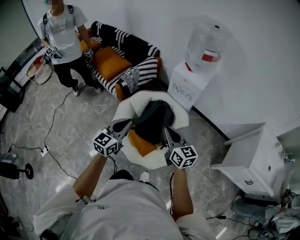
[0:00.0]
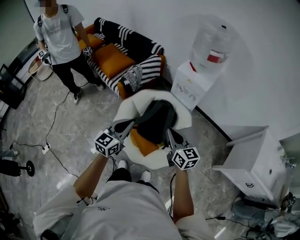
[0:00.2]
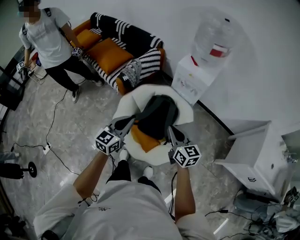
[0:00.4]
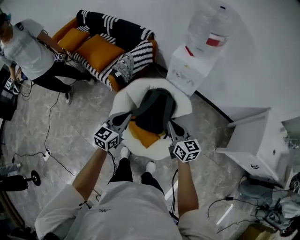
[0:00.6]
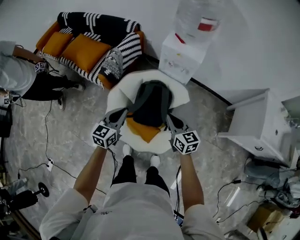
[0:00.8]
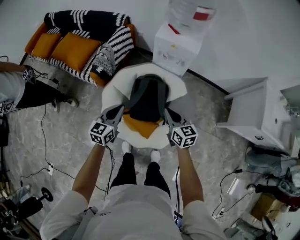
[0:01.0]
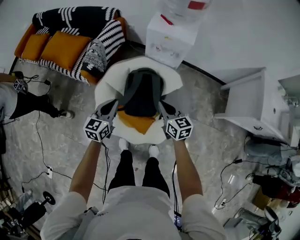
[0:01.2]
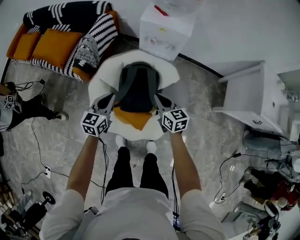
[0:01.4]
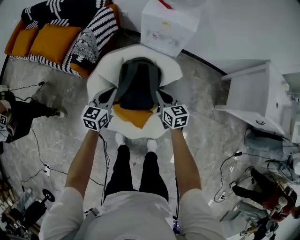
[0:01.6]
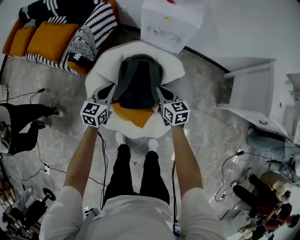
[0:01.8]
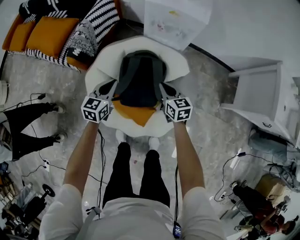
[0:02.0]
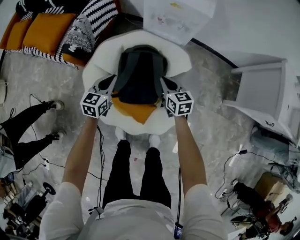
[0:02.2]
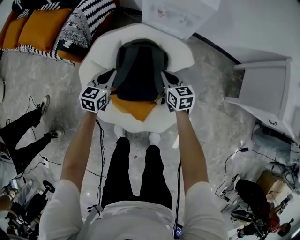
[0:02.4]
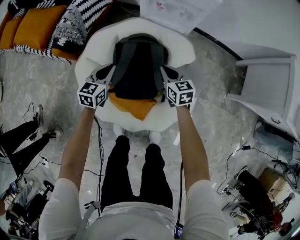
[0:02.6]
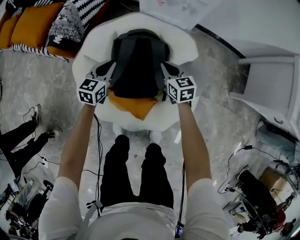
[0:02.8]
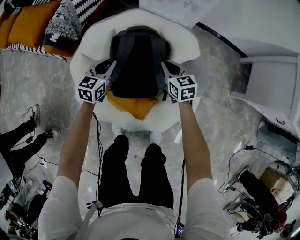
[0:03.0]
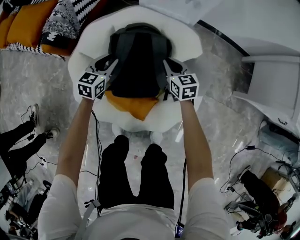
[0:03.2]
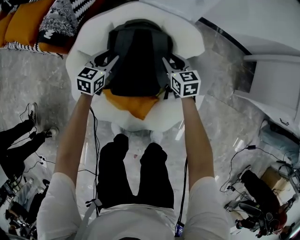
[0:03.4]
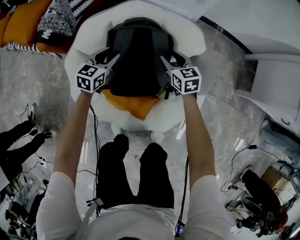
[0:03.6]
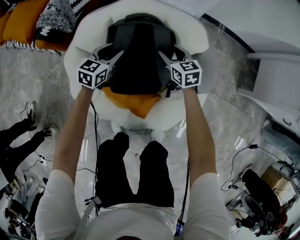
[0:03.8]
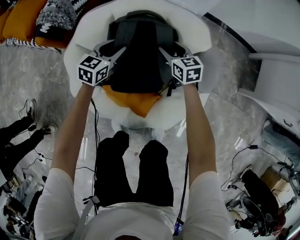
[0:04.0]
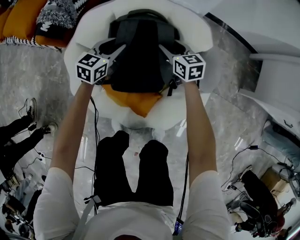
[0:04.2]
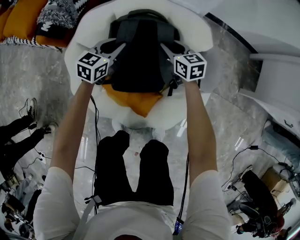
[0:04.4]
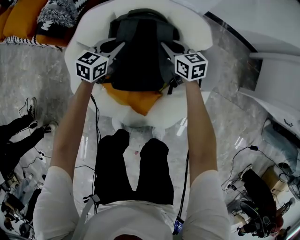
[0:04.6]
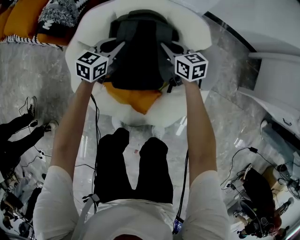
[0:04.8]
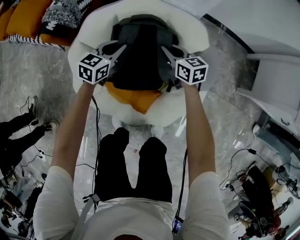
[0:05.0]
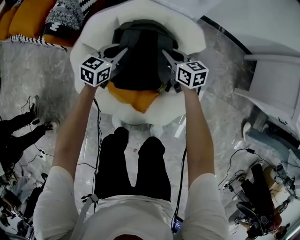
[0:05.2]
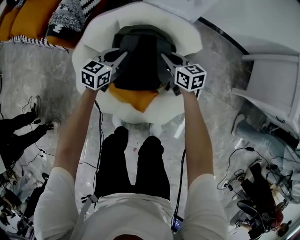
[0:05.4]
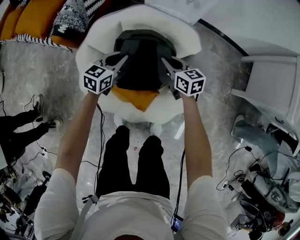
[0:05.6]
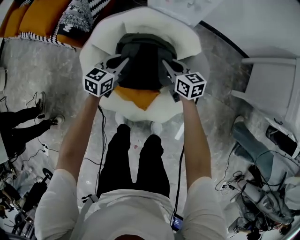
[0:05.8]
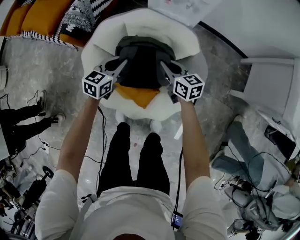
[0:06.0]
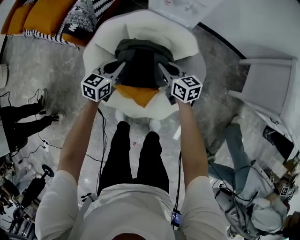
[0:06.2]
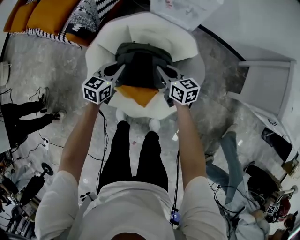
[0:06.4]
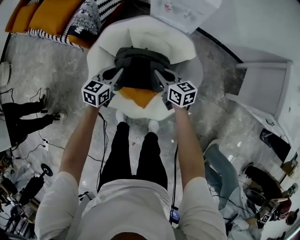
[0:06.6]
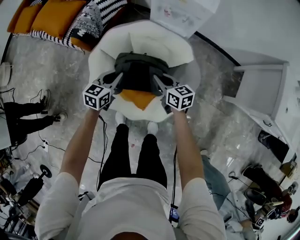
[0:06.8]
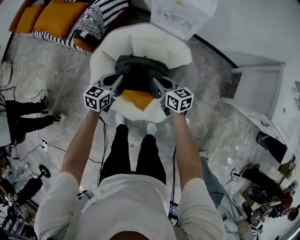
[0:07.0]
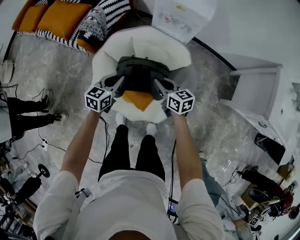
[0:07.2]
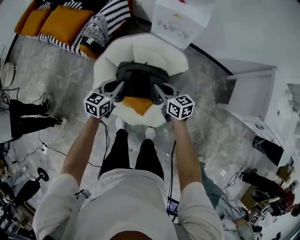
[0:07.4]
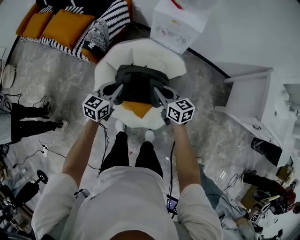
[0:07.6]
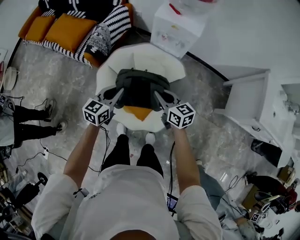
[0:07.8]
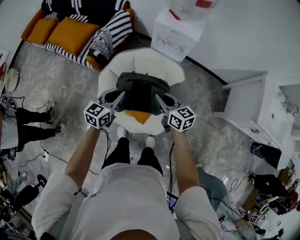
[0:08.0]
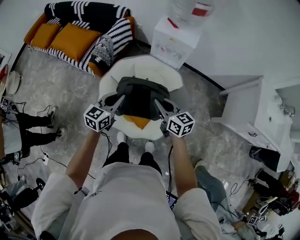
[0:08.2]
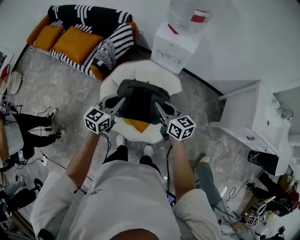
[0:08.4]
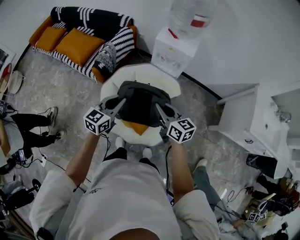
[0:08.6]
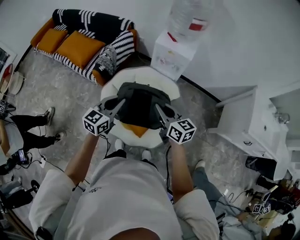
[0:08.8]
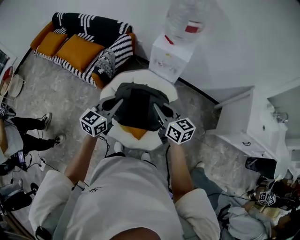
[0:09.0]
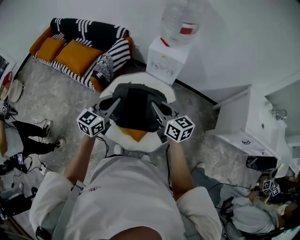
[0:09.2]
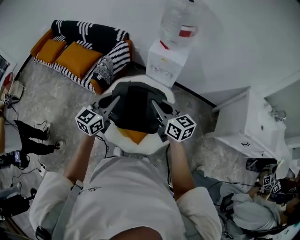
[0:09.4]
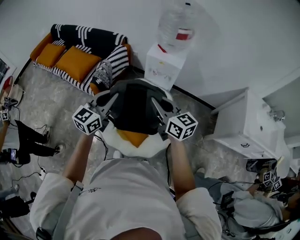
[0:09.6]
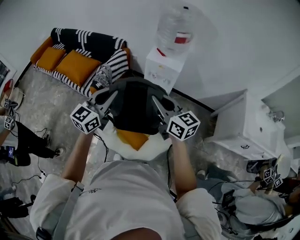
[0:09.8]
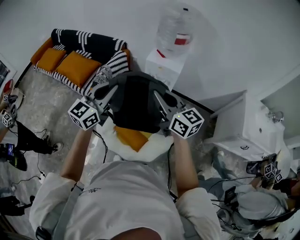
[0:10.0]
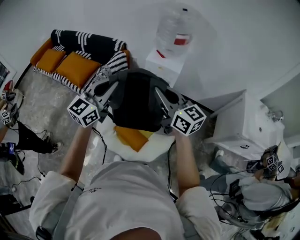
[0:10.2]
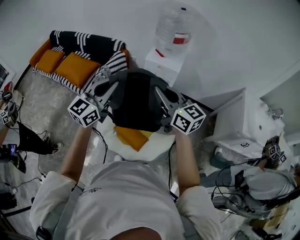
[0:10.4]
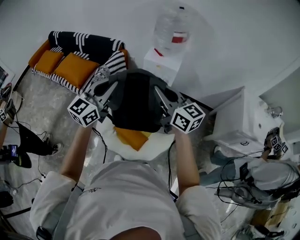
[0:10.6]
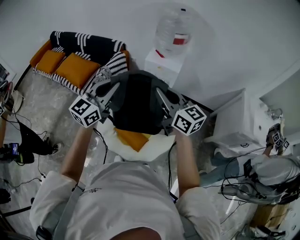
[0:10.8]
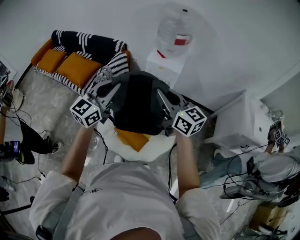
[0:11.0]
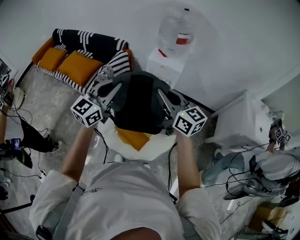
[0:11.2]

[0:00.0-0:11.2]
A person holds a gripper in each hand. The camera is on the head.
0.0 to 1.6 s: Both grippers travel together downward and forward, approximately 30 cm. The right gripper changes its angle by roughly 30 degrees.
1.6 to 3.2 s: The two grippers go some 25 cm downward. The left gripper opens its fingers.
3.2 to 4.8 s: The right gripper opens and closes again.
4.8 to 6.4 s: Both grippers move upward and backward, roughly 20 cm.
6.4 to 8.0 s: Both grippers travel together upward, approximately 20 cm.
8.0 to 9.6 s: The two grippers go approximately 20 cm upward.
9.6 to 11.2 s: The left gripper moves upward, some 5 cm.

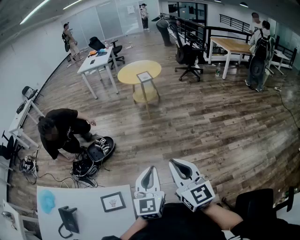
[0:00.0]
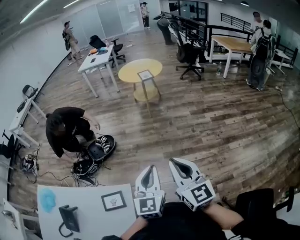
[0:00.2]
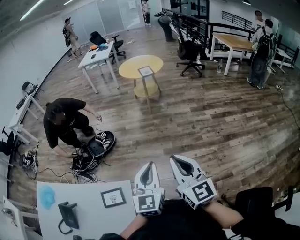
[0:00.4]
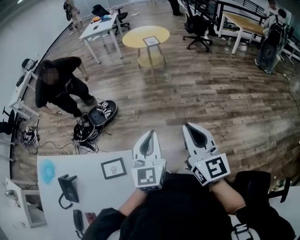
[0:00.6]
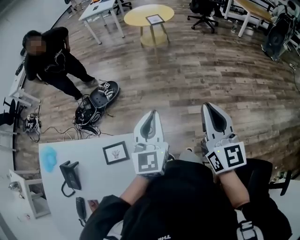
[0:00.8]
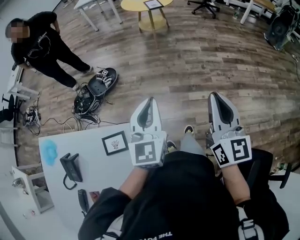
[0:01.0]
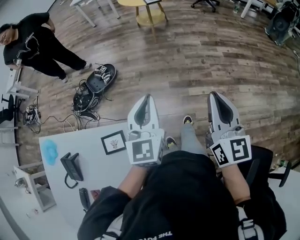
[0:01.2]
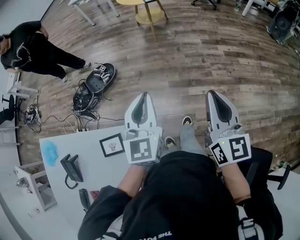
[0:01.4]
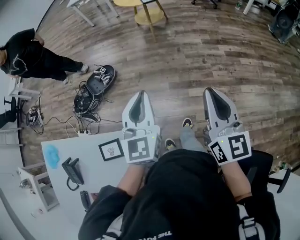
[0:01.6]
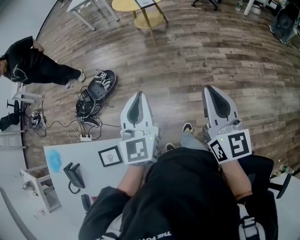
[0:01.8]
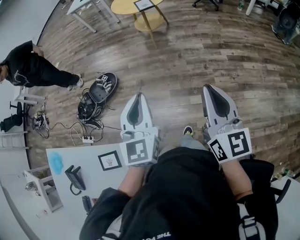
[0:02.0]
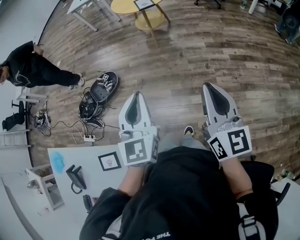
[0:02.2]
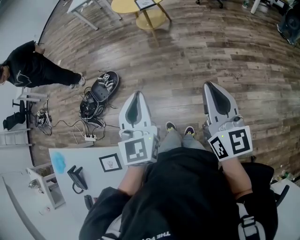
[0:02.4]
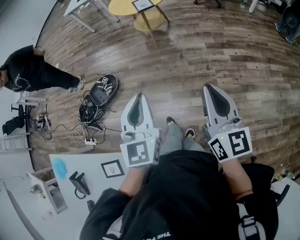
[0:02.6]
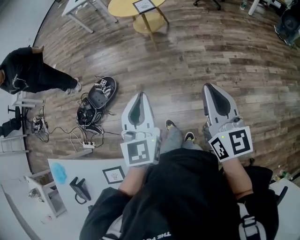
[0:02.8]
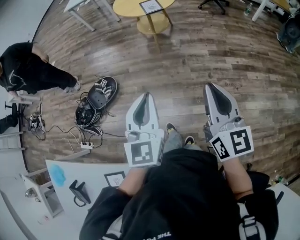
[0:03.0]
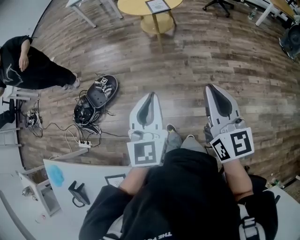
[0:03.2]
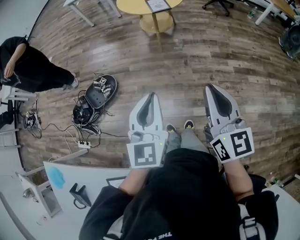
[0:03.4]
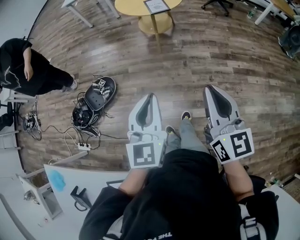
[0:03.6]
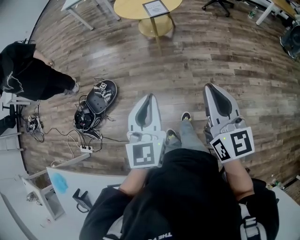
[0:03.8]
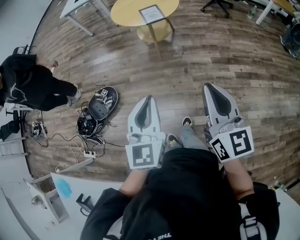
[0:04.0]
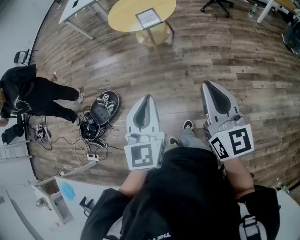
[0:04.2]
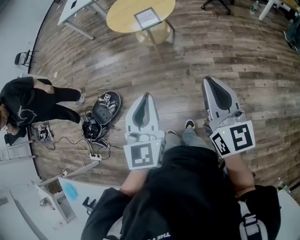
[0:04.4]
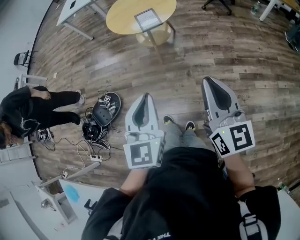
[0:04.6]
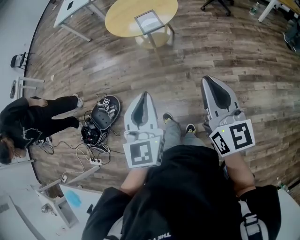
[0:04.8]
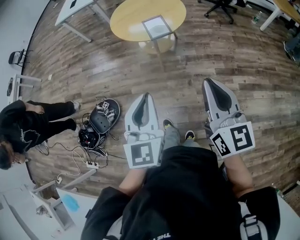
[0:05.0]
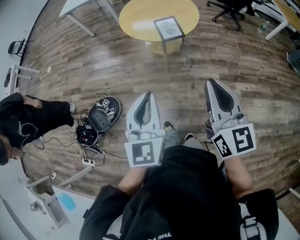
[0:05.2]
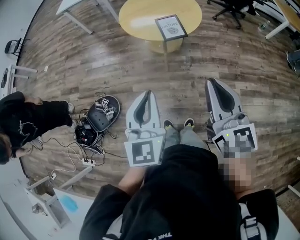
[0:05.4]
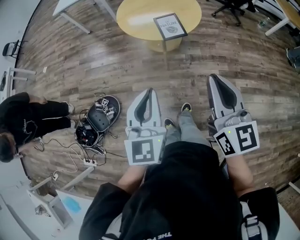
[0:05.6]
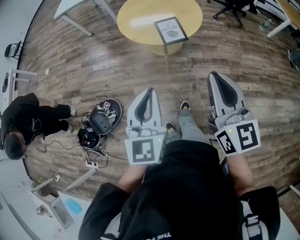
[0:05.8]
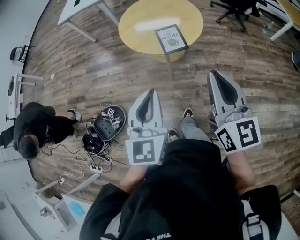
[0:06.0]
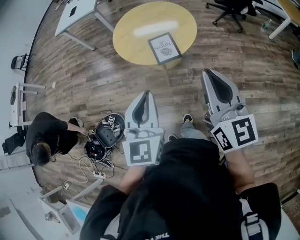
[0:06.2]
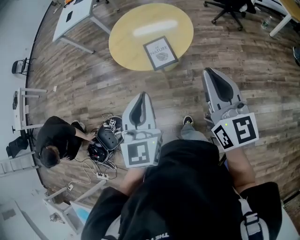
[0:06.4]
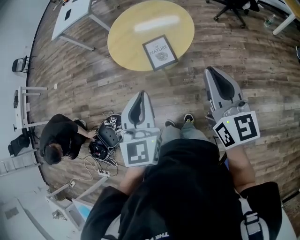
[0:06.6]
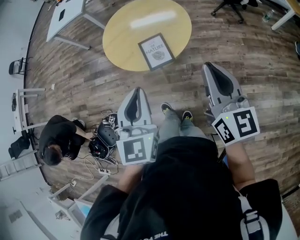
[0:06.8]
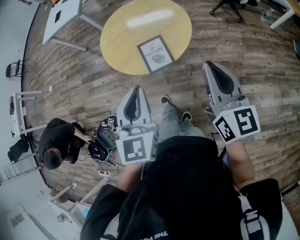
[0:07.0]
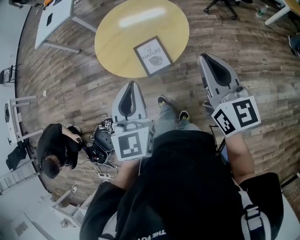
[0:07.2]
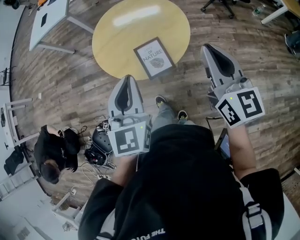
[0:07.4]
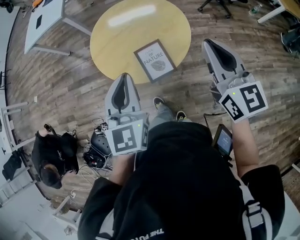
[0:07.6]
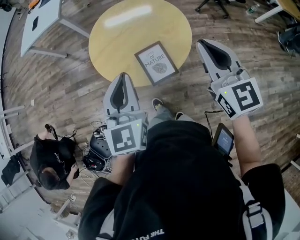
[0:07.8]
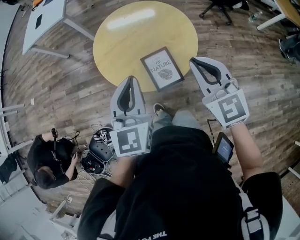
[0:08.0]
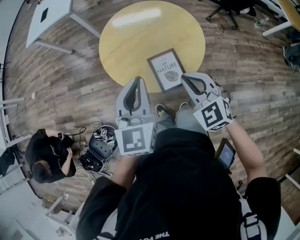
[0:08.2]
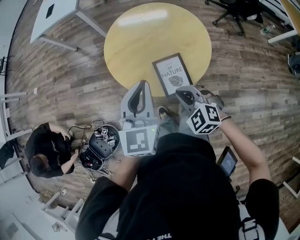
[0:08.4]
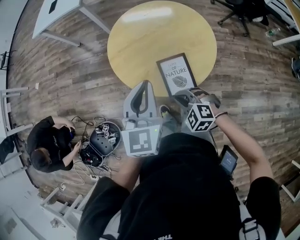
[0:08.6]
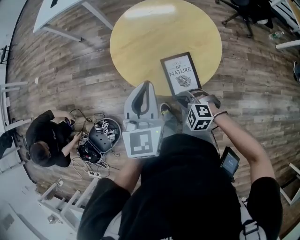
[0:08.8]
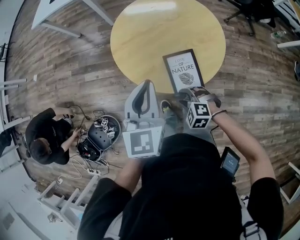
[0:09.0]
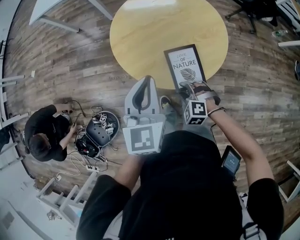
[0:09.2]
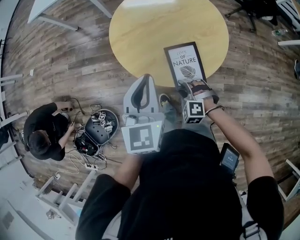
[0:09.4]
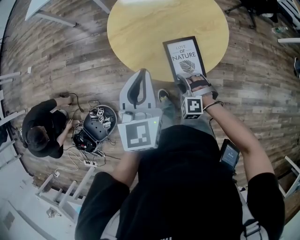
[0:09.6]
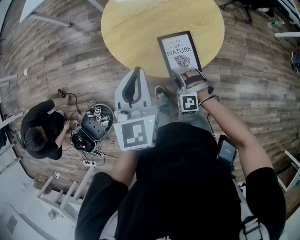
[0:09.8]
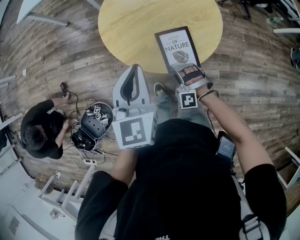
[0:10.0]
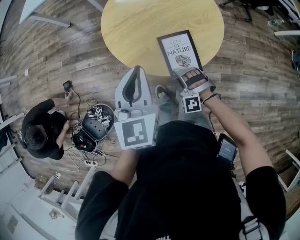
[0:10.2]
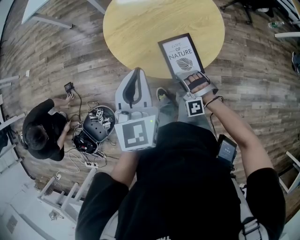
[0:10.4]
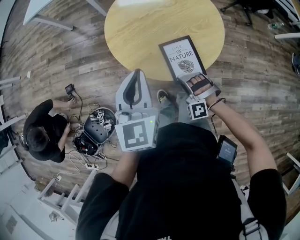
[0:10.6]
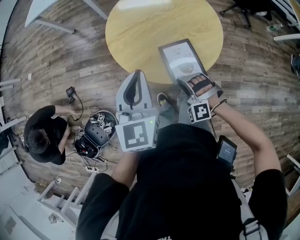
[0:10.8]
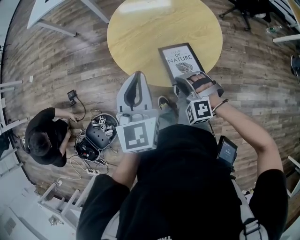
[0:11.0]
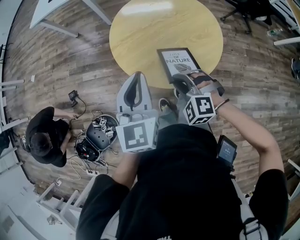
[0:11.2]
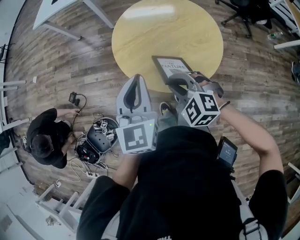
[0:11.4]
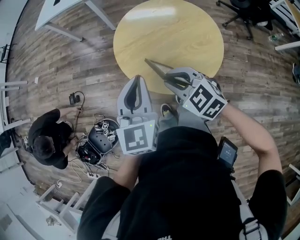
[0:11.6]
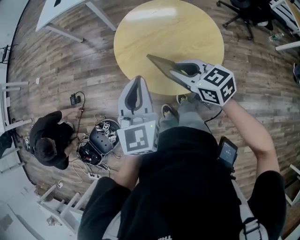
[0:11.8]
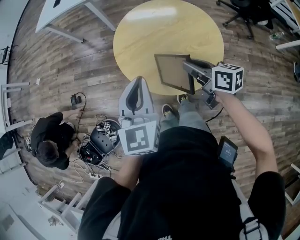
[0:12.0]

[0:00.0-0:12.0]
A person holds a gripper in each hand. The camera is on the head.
0.0 to 1.6 s: The left gripper travels forward by approximately 15 cm. The right gripper moves to the right and forward, approximately 15 cm.
1.6 to 3.0 s: Both grippers move forward, some 25 cm.
3.0 to 4.4 s: Both grippers travel together forward, approximately 25 cm.
4.4 to 6.0 s: Both grippers move forward, about 30 cm.
6.0 to 7.6 s: The two grippers go about 30 cm forward.
7.6 to 9.0 s: The right gripper goes roughly 40 cm downward and to the left, tips its fingers downward by approximately 60 degrees, and opens; the left gripper goes about 10 cm downward and forward.
9.0 to 10.4 s: The right gripper rotates approximately 40 degrees.
10.4 to 12.0 s: The right gripper heads upward and forward, covering approximately 25 cm, and twists about 110 degrees clockwise, seen from behind.

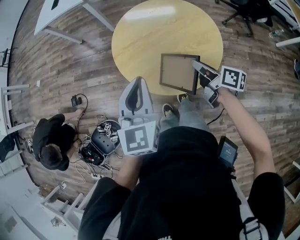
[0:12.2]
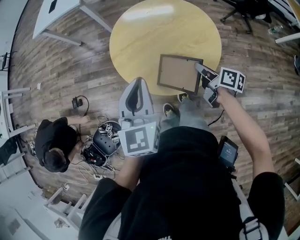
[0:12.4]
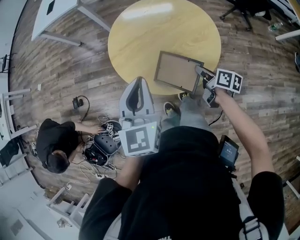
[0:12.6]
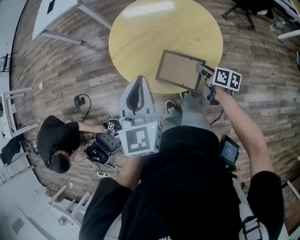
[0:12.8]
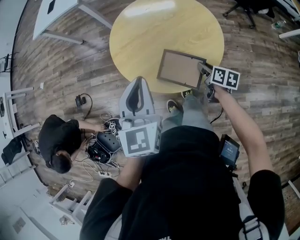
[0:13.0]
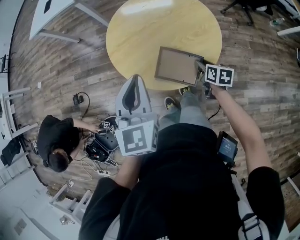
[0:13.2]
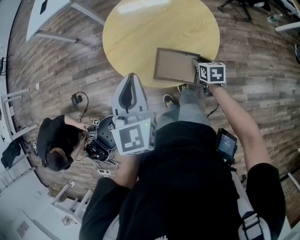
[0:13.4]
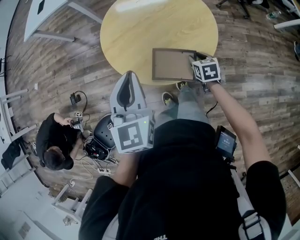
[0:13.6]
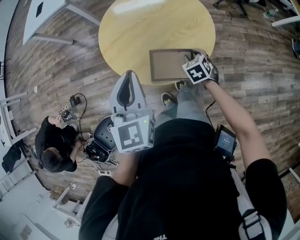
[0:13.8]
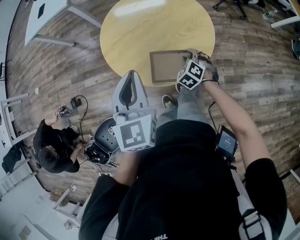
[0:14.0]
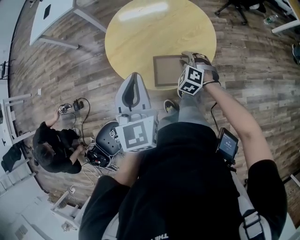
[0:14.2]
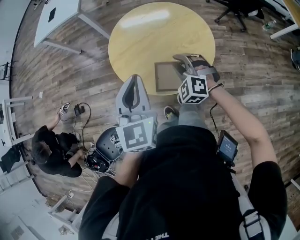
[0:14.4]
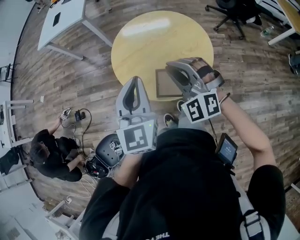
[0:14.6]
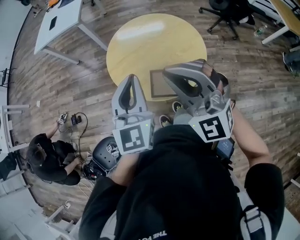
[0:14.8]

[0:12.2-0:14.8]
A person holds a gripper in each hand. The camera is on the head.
12.2 to 13.4 s: The right gripper heads downward, covering about 15 cm, and angles its fingers downward, by roughly 30 degrees.
13.4 to 14.8 s: The right gripper travels upward and to the left by about 40 cm, tilts its fingers approximately 50 degrees upward, and closes its fingers, while the left gripper shifts about 10 cm upward.
